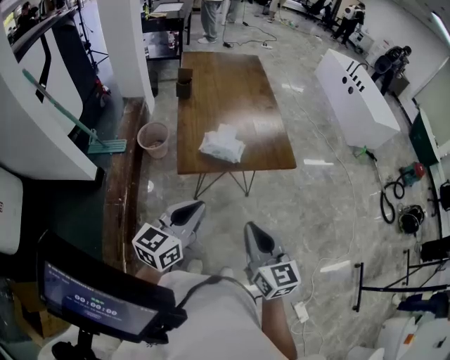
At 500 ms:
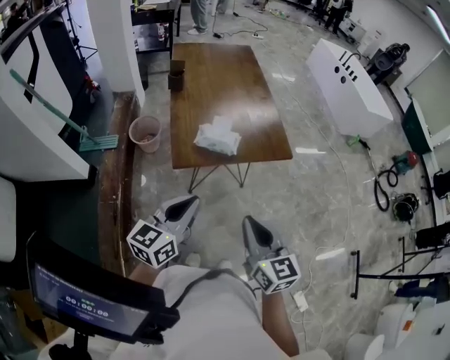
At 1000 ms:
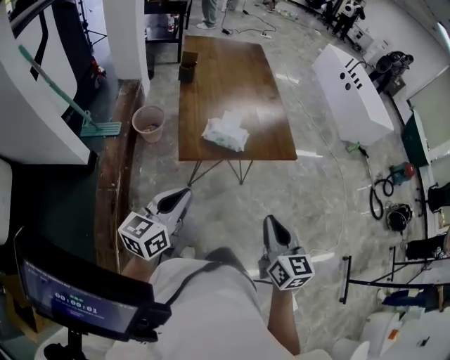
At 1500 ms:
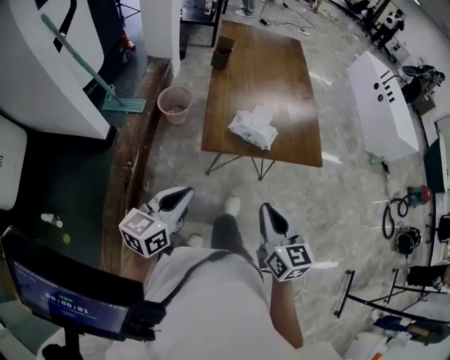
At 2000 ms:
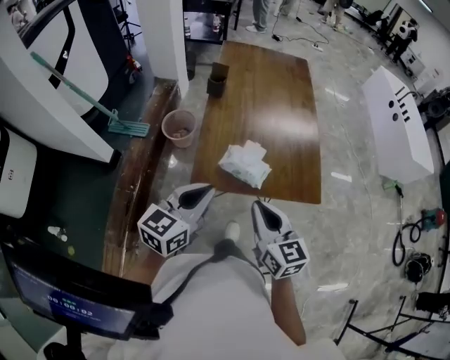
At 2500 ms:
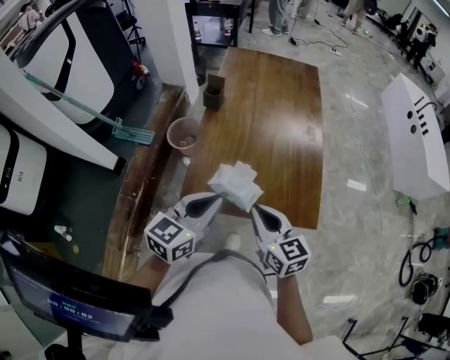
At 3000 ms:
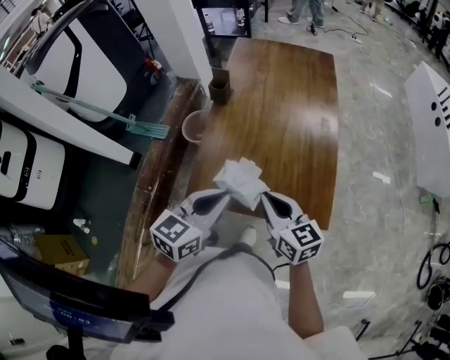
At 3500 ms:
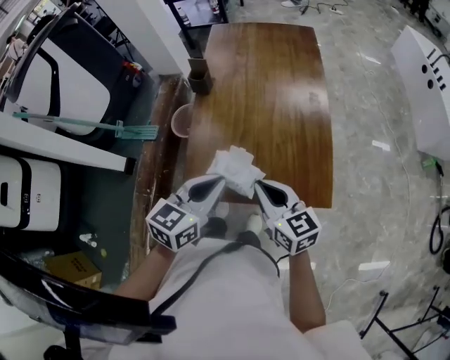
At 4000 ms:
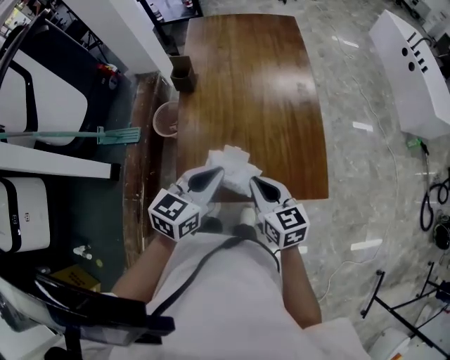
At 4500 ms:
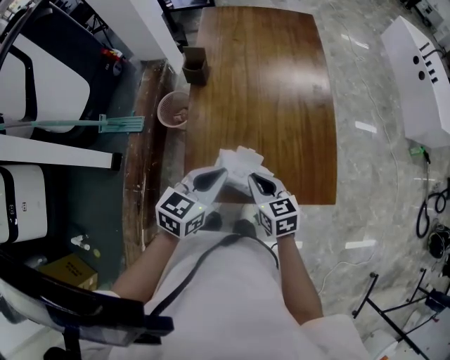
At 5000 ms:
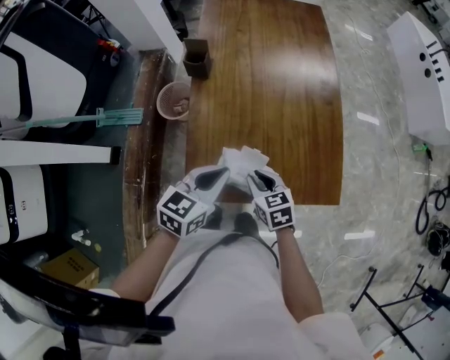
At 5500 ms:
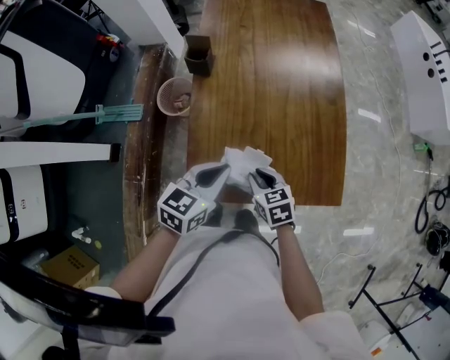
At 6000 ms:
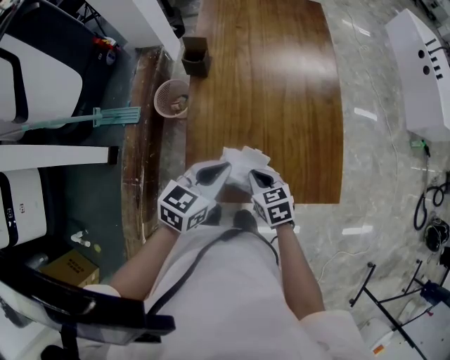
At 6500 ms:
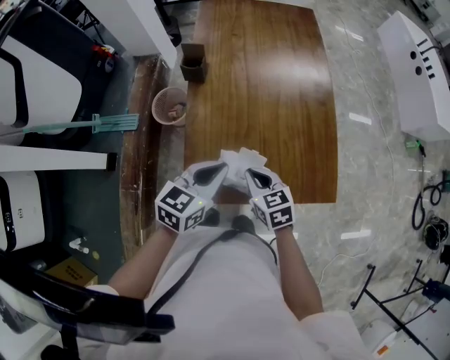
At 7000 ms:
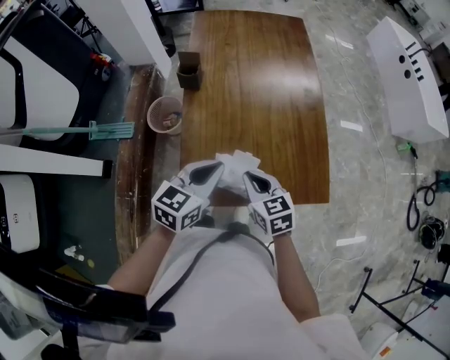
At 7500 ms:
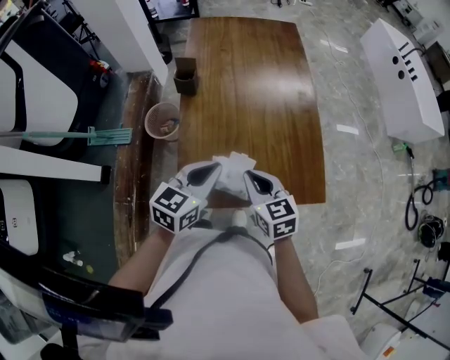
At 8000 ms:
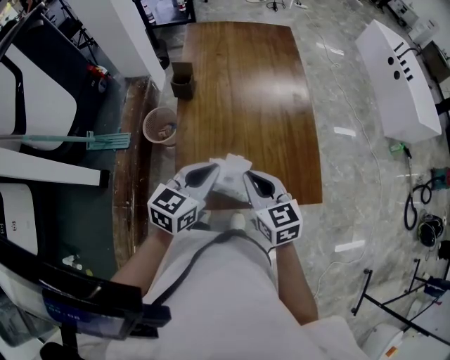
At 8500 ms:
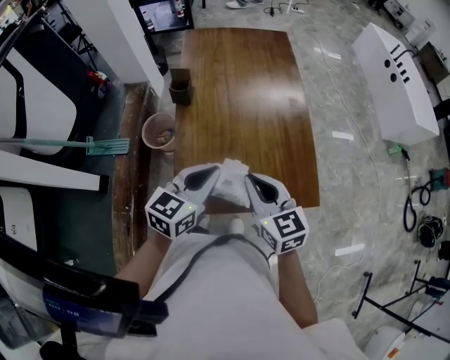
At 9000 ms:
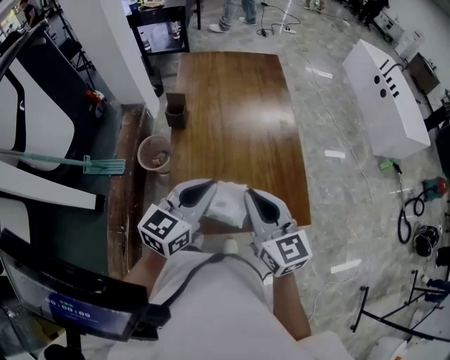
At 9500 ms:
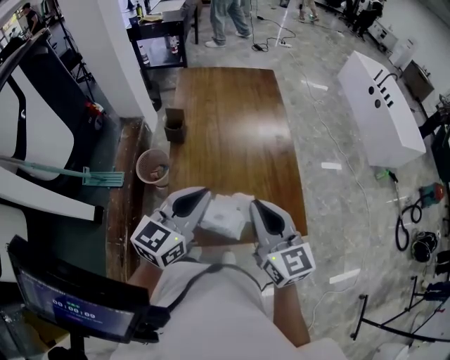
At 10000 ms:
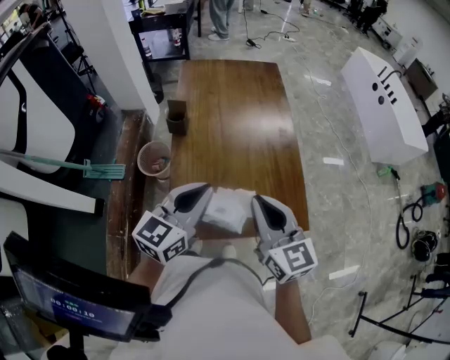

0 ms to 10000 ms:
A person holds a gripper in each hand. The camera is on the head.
0 ms to 2000 ms: The two grippers go some 20 cm forward.
2000 ms to 4000 ms: The left gripper heads forward and to the right, covering some 20 cm. Meanwhile the right gripper shifts about 20 cm forward, downward and to the right.
4000 ms to 6000 ms: The left gripper moves downward, some 5 cm; the right gripper goes approximately 15 cm downward and to the left, and swivels roughly 30 degrees.
6000 ms to 8000 ms: The right gripper shifts about 15 cm upward, and swivels roughly 20 degrees. Meanwhile the left gripper shifts some 5 cm upward.
8000 ms to 10000 ms: Both grippers move upward, some 10 cm.

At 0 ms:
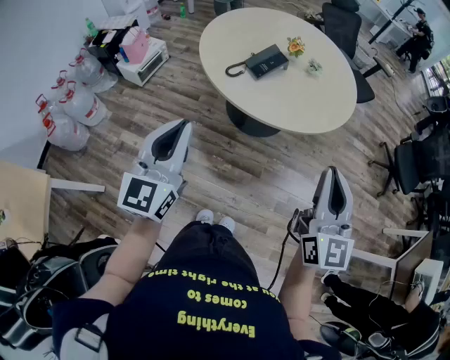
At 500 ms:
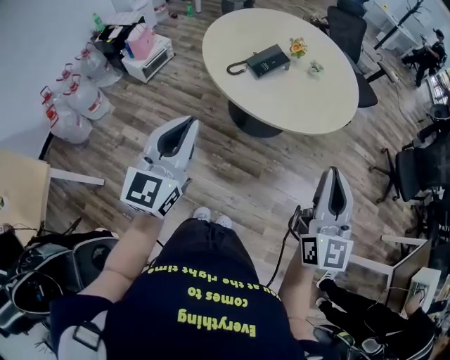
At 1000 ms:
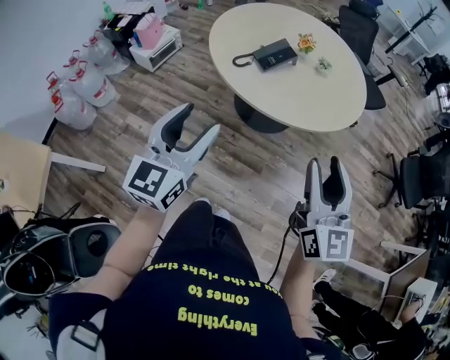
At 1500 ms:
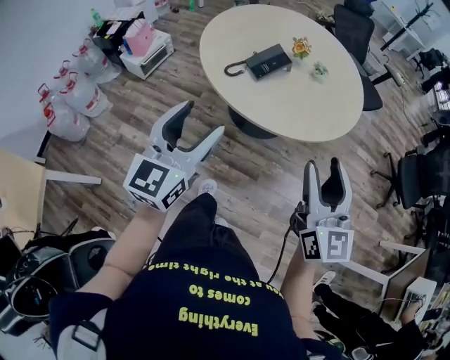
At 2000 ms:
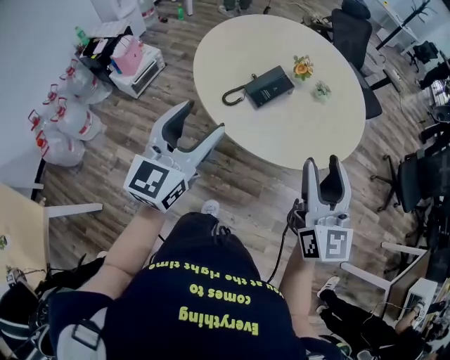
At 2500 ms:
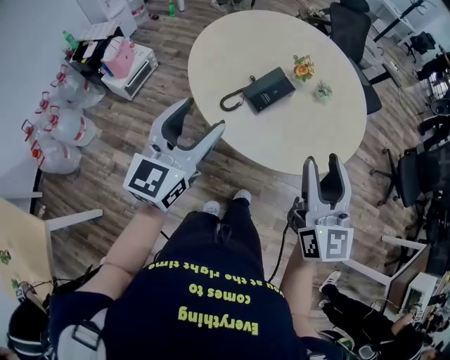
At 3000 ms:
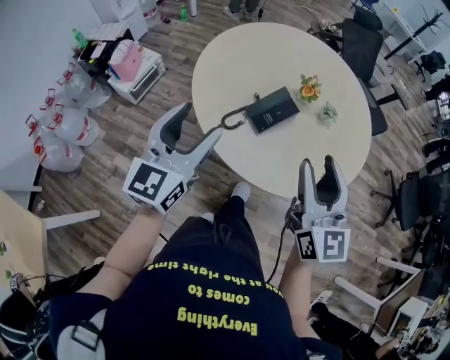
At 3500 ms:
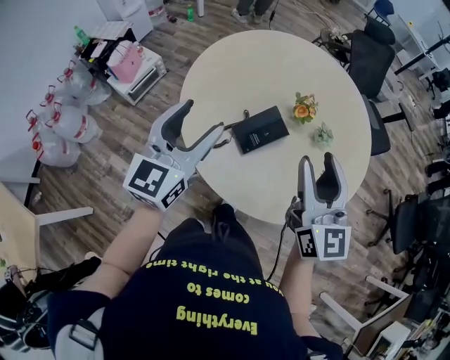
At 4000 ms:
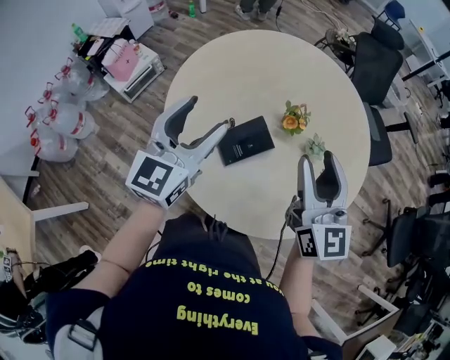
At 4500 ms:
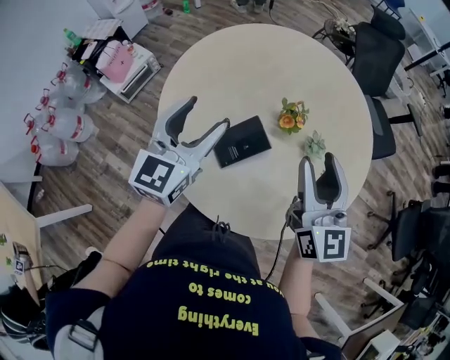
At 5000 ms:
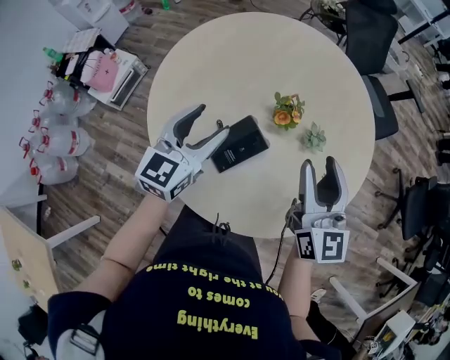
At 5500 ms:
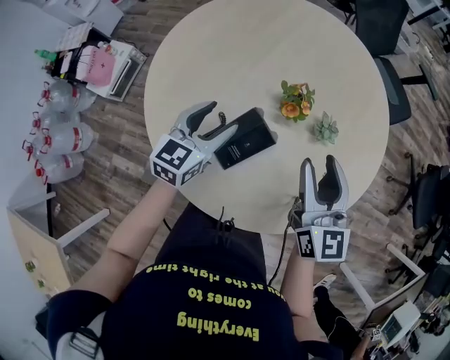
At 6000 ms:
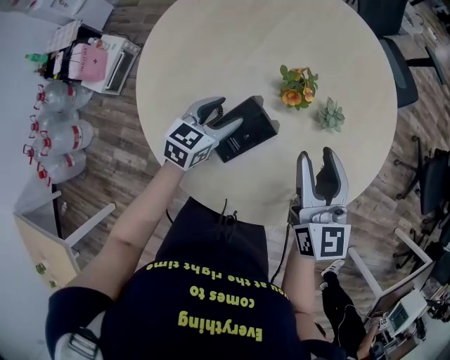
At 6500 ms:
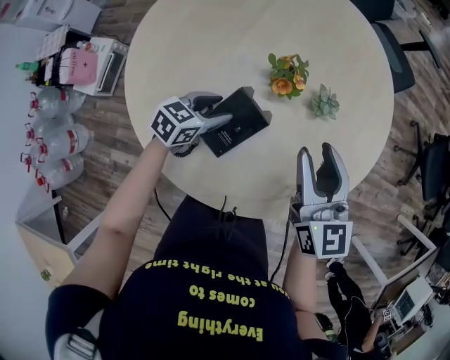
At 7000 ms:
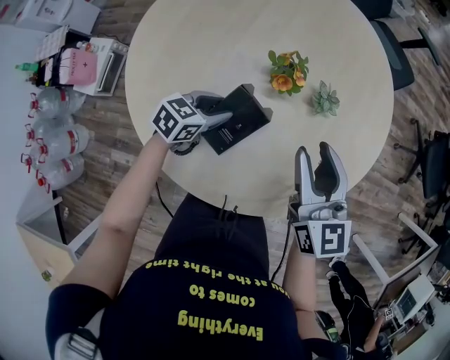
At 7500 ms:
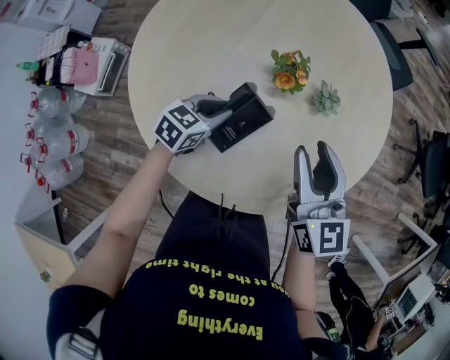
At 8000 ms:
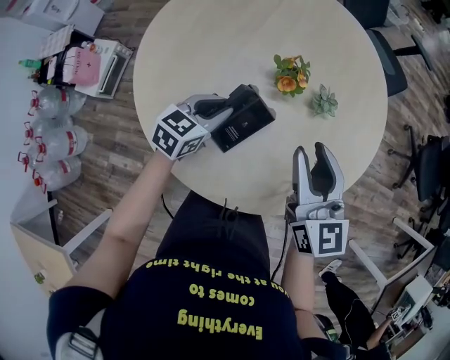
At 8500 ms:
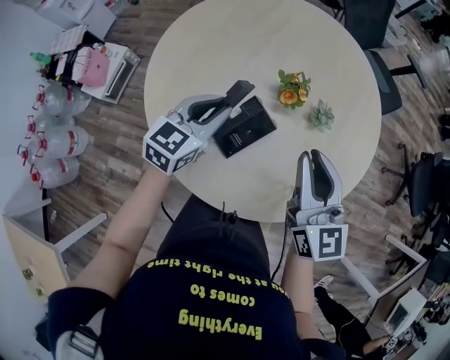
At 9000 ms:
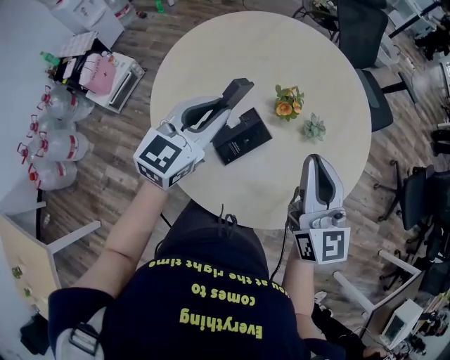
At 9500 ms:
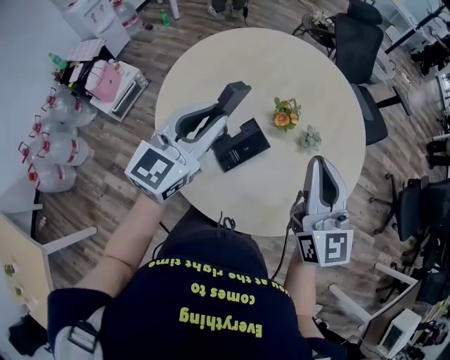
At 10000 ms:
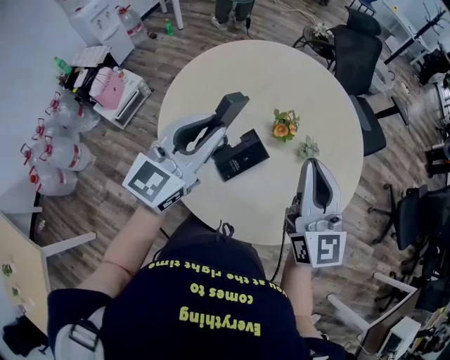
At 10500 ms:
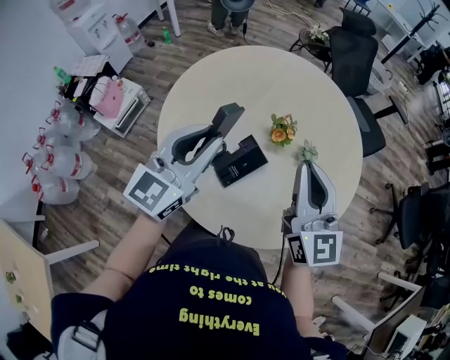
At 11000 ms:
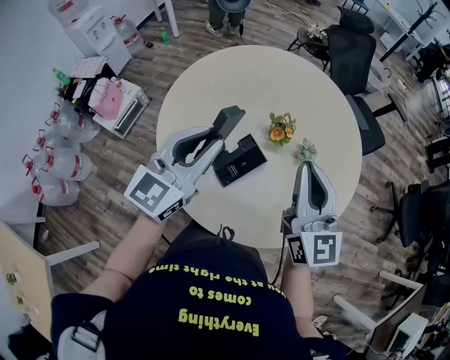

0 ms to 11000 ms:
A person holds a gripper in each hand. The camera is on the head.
0 ms to 2000 ms: Both grippers move forward, approximately 20 cm. The right gripper opens up. Meanwhile the left gripper opens its fingers.
2000 ms to 3500 ms: Both grippers move forward, some 25 cm.
3500 ms to 5500 ms: Both grippers move forward, downward and to the right, about 25 cm. The left gripper turns by approximately 30 degrees.
5500 ms to 7500 ms: The left gripper heads downward, covering about 10 cm, changes its angle by approximately 30 degrees, and closes its fingers.
7500 ms to 9000 ms: The right gripper goes roughly 10 cm upward, and closes its fingers. The left gripper heads upward, covering roughly 25 cm, and rotates some 40 degrees.
9000 ms to 11000 ms: The left gripper heads upward and backward, covering some 10 cm.

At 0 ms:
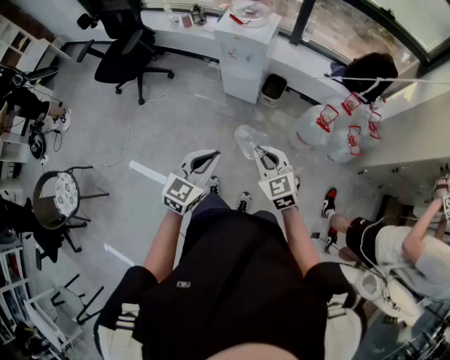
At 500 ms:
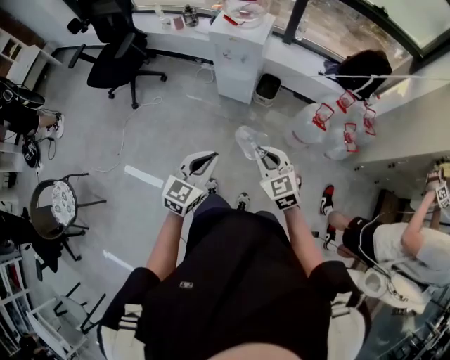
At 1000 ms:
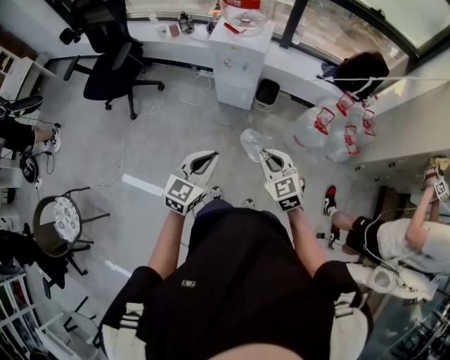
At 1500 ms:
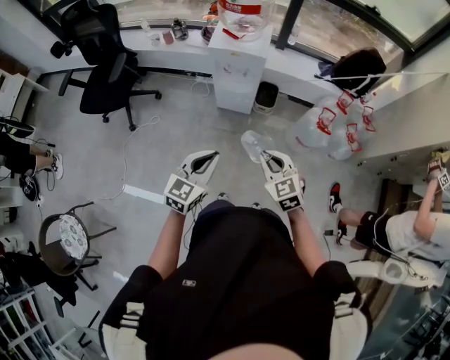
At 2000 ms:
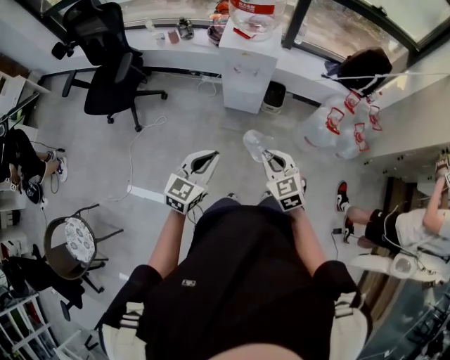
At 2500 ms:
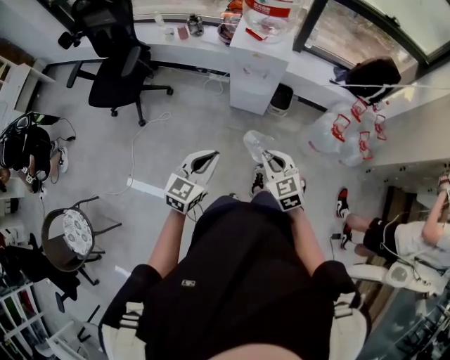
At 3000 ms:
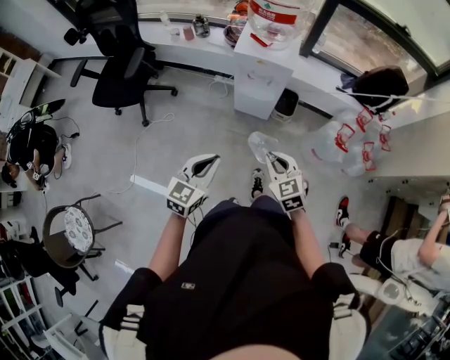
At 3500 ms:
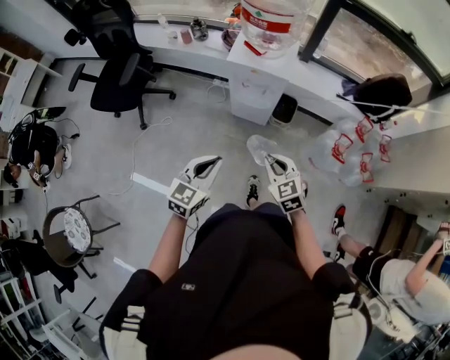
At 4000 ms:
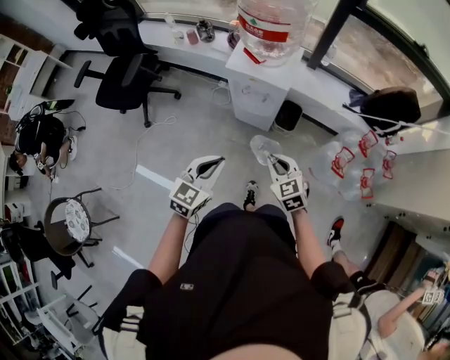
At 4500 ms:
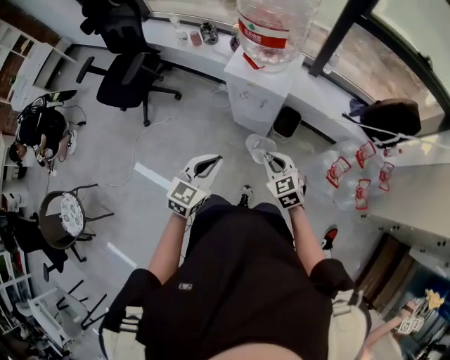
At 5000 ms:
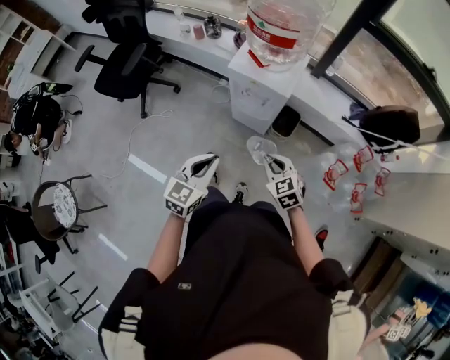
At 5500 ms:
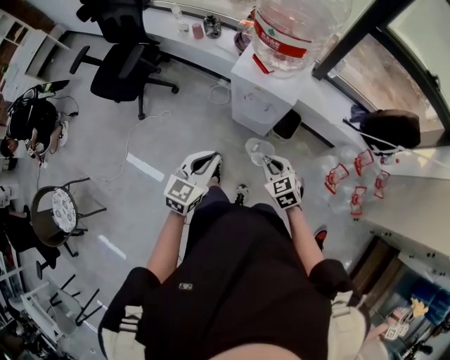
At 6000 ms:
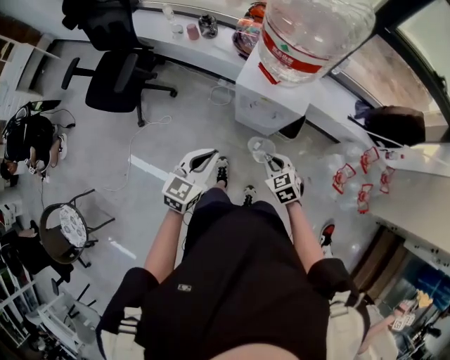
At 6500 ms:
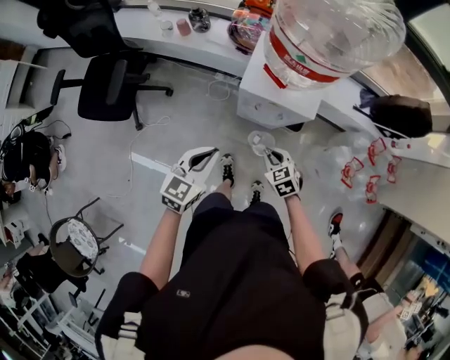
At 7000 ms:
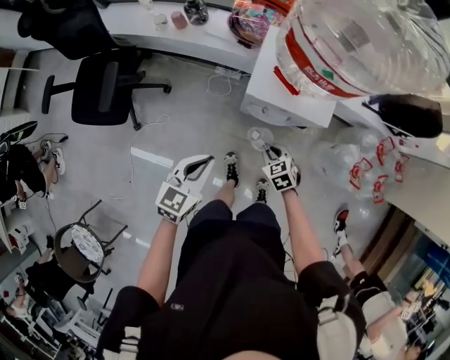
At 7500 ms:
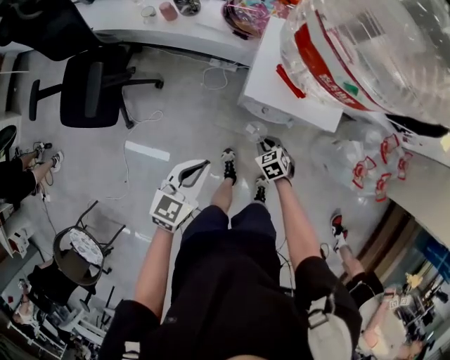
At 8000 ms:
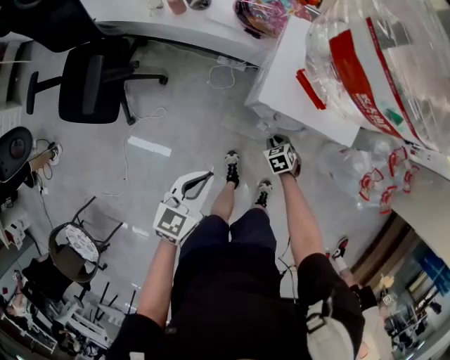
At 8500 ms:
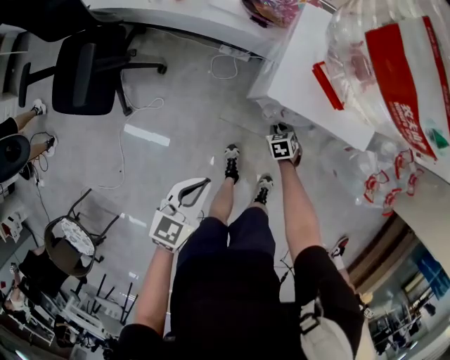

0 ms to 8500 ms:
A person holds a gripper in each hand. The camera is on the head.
0 ms to 2000 ms: The two grippers go roughly 20 cm to the left and forward.
2000 ms to 4000 ms: The left gripper heads forward and to the right, covering roughly 20 cm; the right gripper goes approximately 20 cm forward.
4000 ms to 6500 ms: The right gripper shifts some 25 cm forward, downward and to the left; the left gripper travels forward and to the left by approximately 25 cm.
6500 ms to 8500 ms: The left gripper is displaced downward by some 20 cm; the right gripper is displaced downward by about 35 cm, and rotates some 20 degrees.
